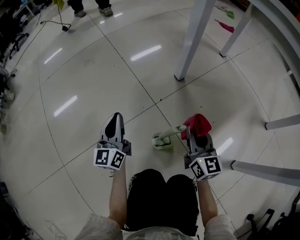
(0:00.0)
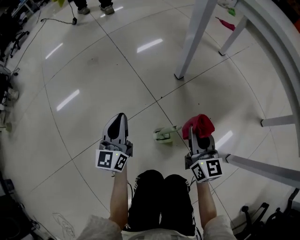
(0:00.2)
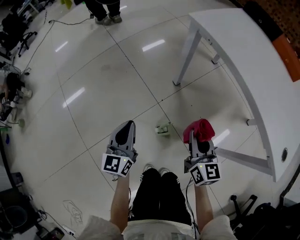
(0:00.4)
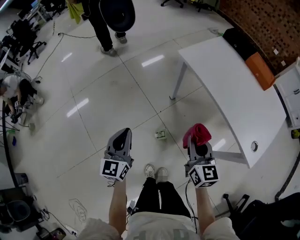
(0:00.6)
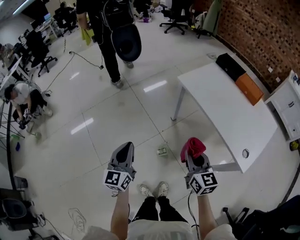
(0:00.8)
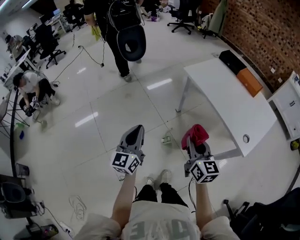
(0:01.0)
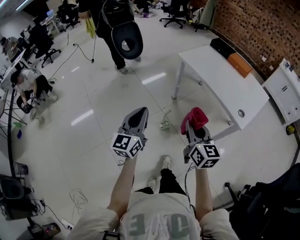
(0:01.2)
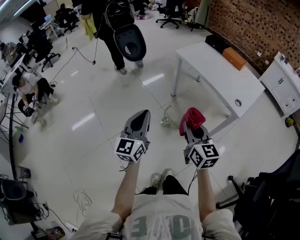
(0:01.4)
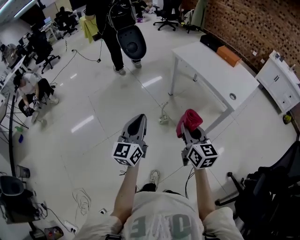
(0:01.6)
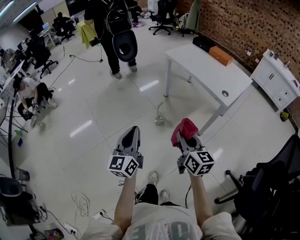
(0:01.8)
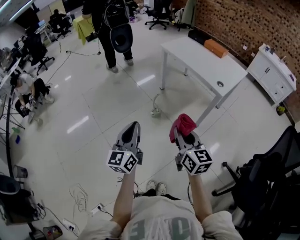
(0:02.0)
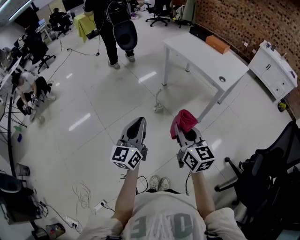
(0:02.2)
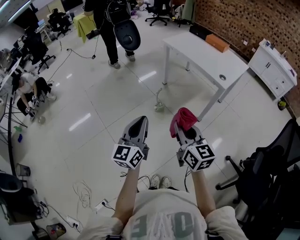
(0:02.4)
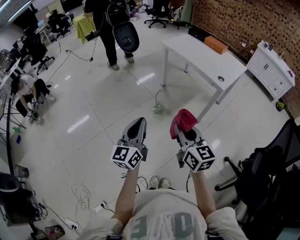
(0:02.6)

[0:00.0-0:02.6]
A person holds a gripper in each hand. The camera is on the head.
0:00.0 to 0:01.2: Both grippers travel together upward and backward, approximately 80 cm.
0:01.2 to 0:02.6: The two grippers go roughly 35 cm backward.

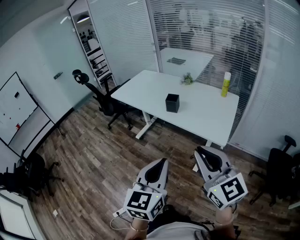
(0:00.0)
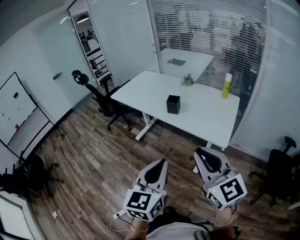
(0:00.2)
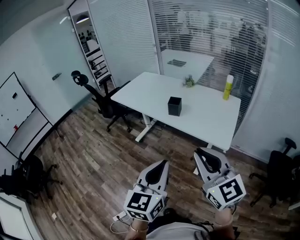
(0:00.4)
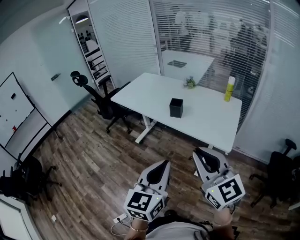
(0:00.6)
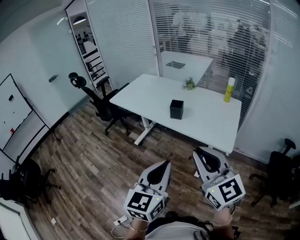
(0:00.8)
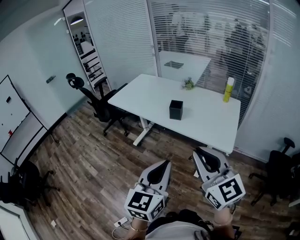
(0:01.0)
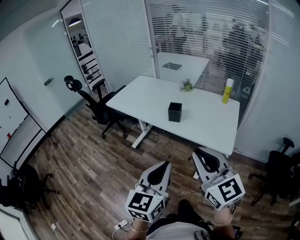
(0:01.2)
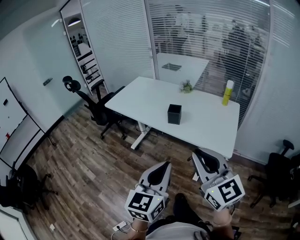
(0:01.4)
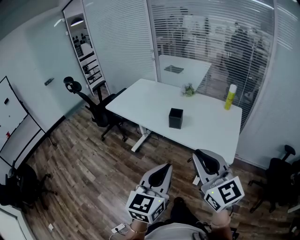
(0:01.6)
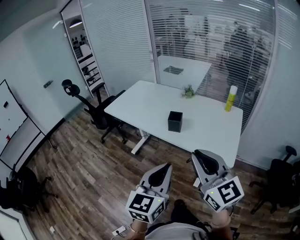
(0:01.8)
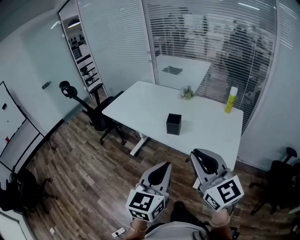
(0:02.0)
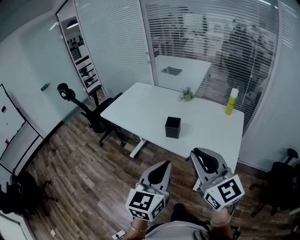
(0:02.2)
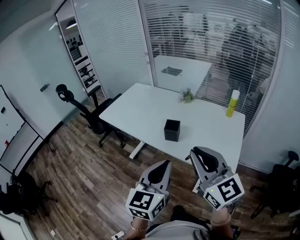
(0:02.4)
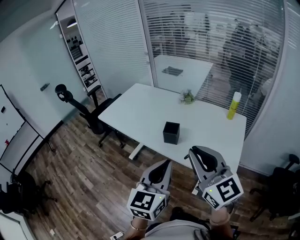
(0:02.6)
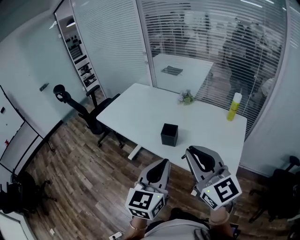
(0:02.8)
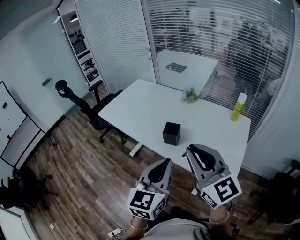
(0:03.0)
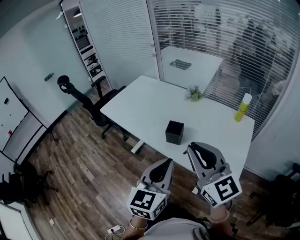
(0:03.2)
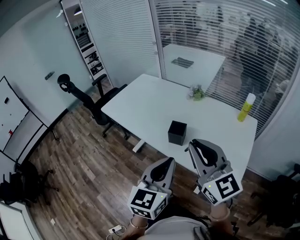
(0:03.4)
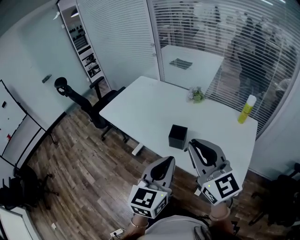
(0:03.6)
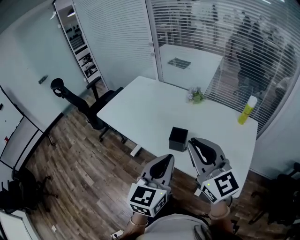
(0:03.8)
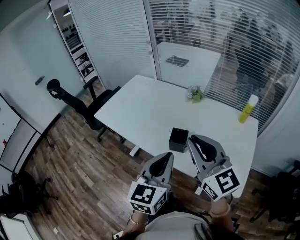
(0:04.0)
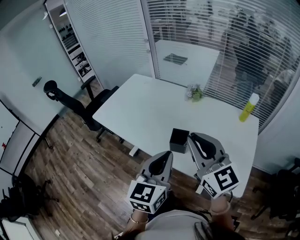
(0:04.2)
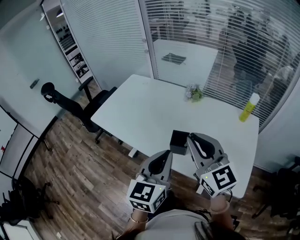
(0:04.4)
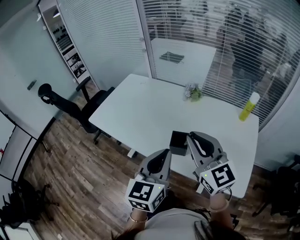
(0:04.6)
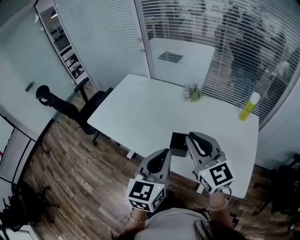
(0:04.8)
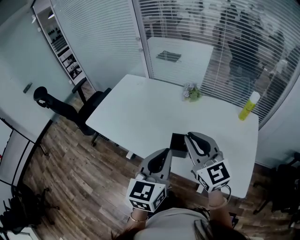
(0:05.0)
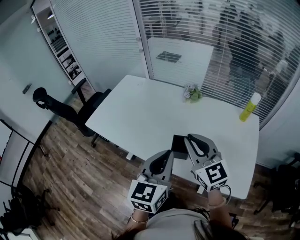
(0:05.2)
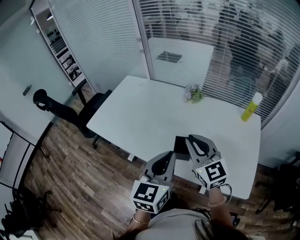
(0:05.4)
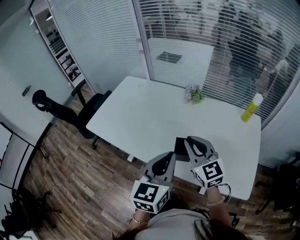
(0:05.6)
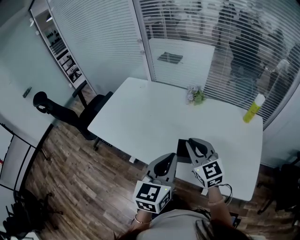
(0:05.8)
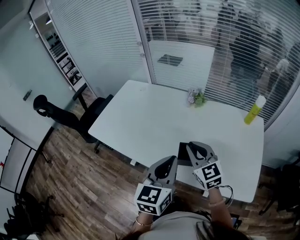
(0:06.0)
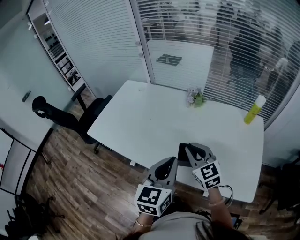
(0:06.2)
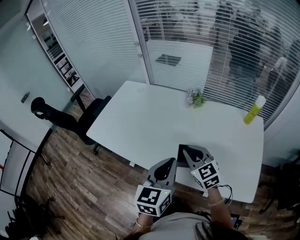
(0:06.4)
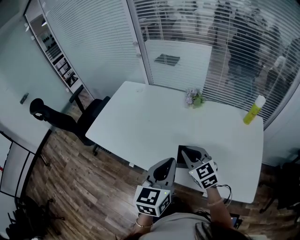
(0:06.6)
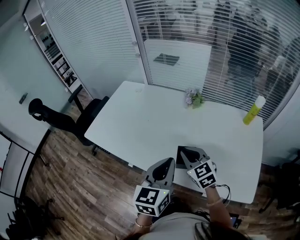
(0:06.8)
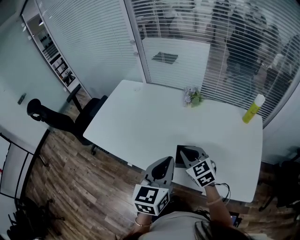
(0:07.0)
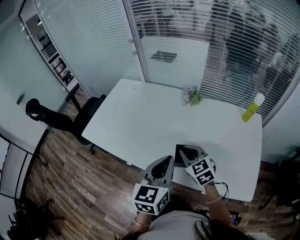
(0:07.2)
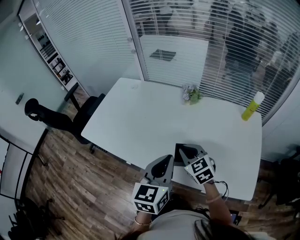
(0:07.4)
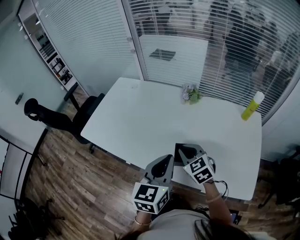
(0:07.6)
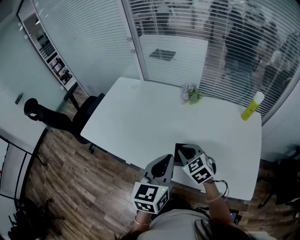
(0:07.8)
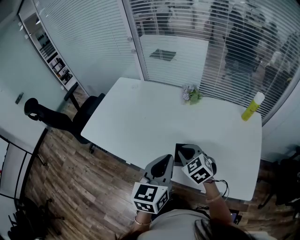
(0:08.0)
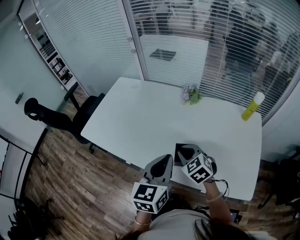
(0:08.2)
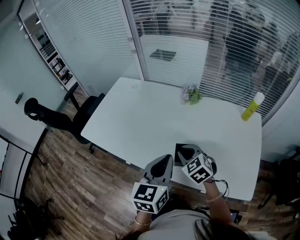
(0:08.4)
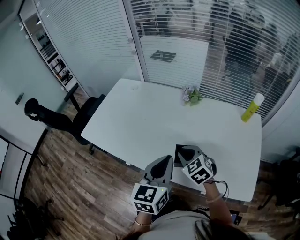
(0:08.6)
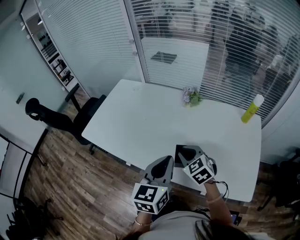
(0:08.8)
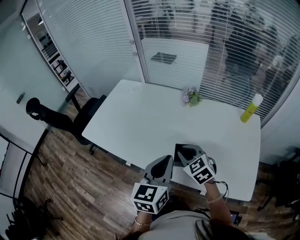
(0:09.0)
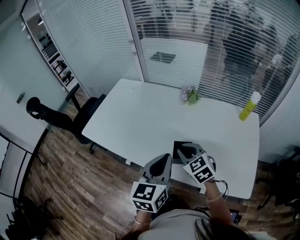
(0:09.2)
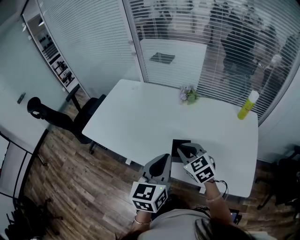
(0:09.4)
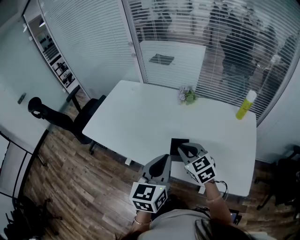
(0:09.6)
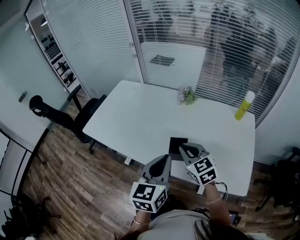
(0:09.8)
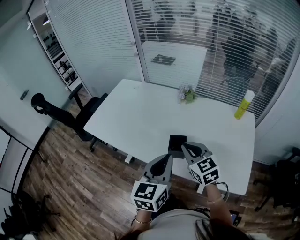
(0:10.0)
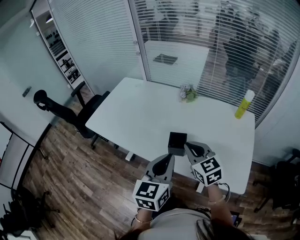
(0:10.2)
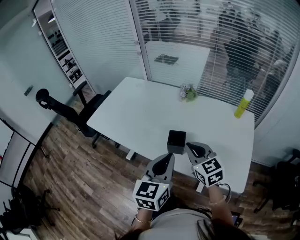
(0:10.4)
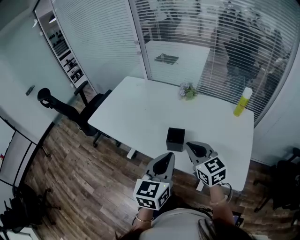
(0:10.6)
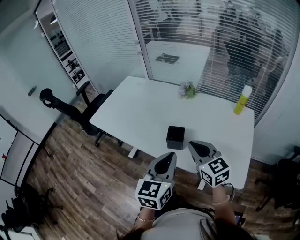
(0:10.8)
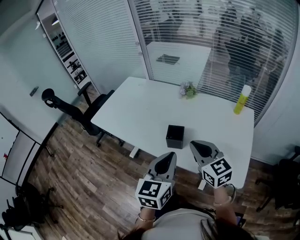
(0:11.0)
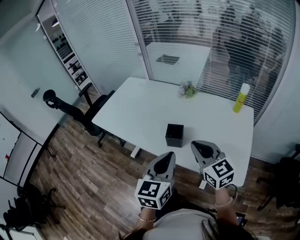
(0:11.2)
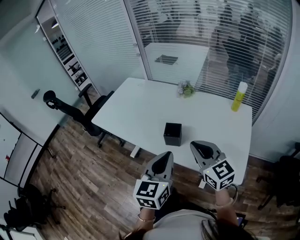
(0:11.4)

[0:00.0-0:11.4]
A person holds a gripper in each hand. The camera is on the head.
0:00.0 to 0:01.4: The left gripper is displaced forward by some 10 cm. The right gripper is displaced forward and to the left by roughly 10 cm.
0:01.4 to 0:02.8: The grippers both shift forward by some 20 cm.
0:02.8 to 0:04.2: Both grippers move forward, roughly 15 cm.
0:04.2 to 0:05.6: The right gripper heads downward and forward, covering roughly 15 cm. Meanwhile the left gripper travels forward by roughly 10 cm.
0:05.6 to 0:07.2: The left gripper shifts by roughly 5 cm; the right gripper moves downward, about 10 cm, and turns by approximately 20 degrees.
0:07.2 to 0:08.6: The grippers make only small movements.
0:08.6 to 0:10.0: The right gripper moves upward and backward, some 10 cm, and changes its angle by roughly 20 degrees. The left gripper travels backward by roughly 5 cm.
0:10.0 to 0:11.4: The right gripper moves backward and upward, about 15 cm; the left gripper is displaced backward by some 10 cm.

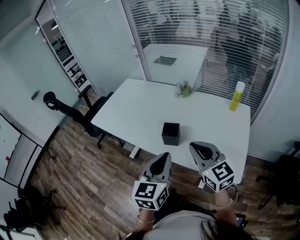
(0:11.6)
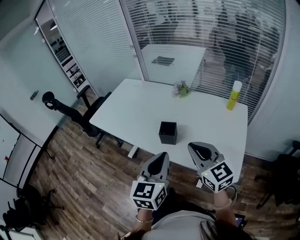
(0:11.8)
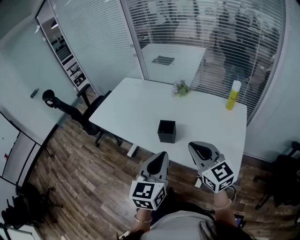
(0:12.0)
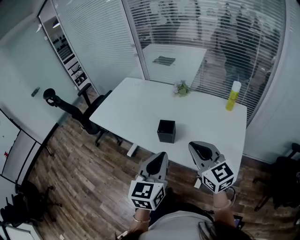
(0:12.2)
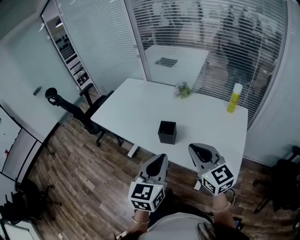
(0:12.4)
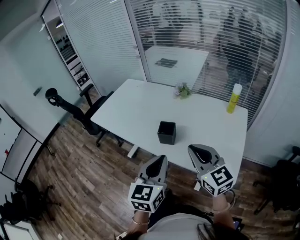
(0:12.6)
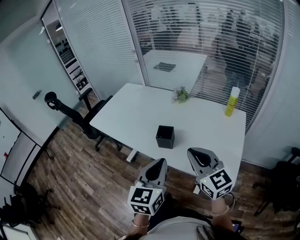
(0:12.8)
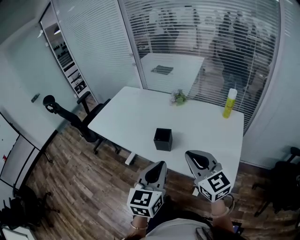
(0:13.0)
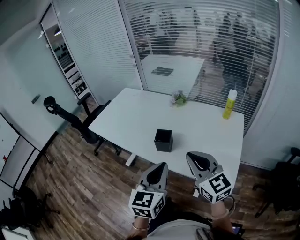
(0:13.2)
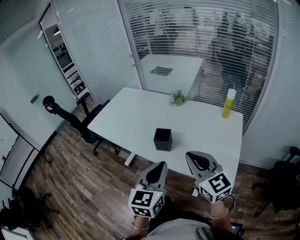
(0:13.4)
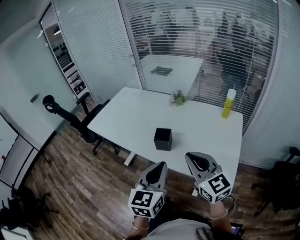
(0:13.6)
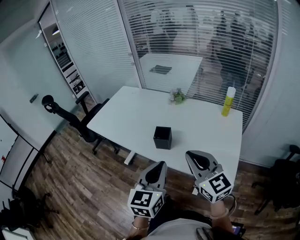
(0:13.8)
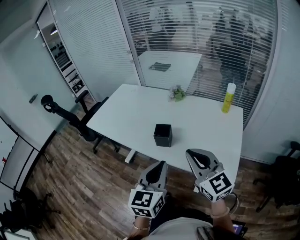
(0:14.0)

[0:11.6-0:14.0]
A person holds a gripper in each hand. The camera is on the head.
0:11.6 to 0:14.0: The grippers make only small movements.

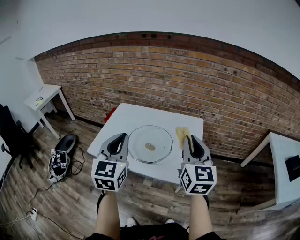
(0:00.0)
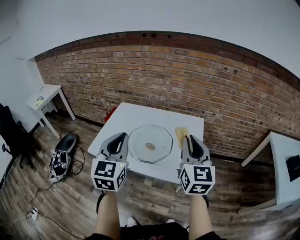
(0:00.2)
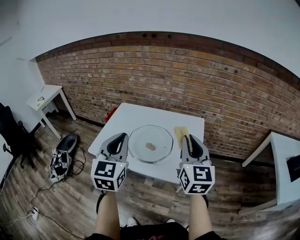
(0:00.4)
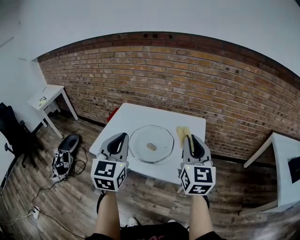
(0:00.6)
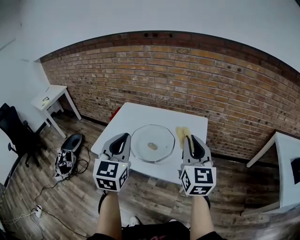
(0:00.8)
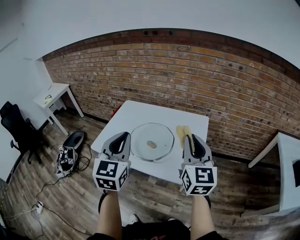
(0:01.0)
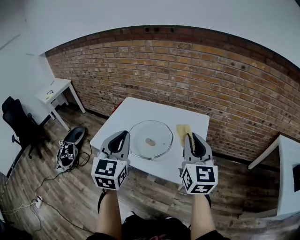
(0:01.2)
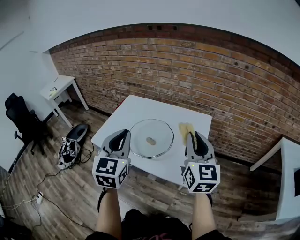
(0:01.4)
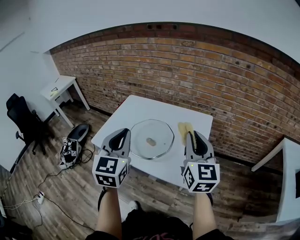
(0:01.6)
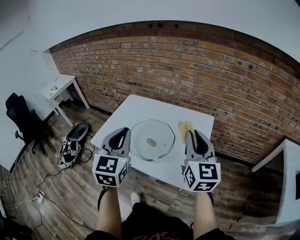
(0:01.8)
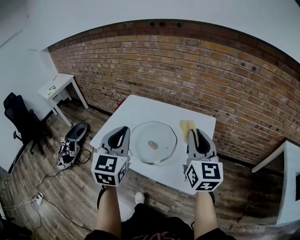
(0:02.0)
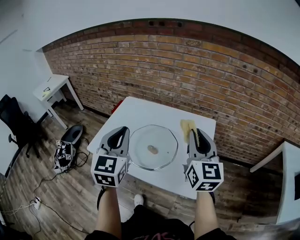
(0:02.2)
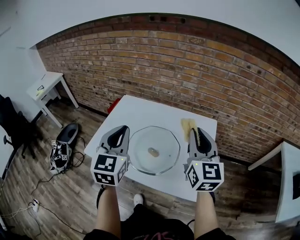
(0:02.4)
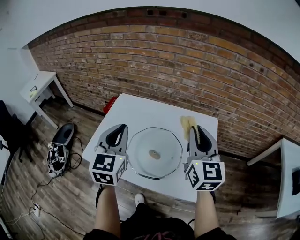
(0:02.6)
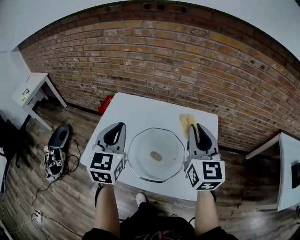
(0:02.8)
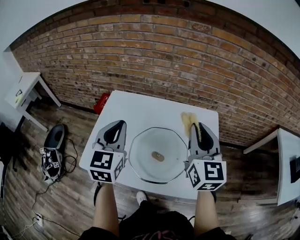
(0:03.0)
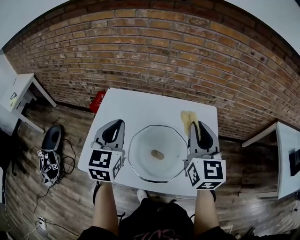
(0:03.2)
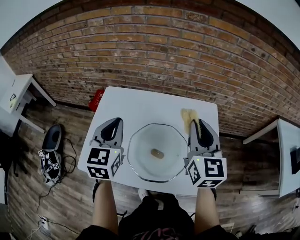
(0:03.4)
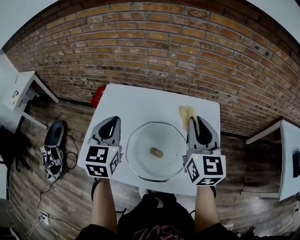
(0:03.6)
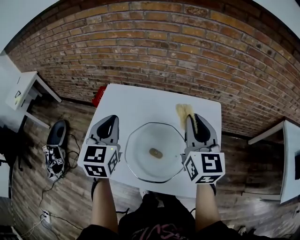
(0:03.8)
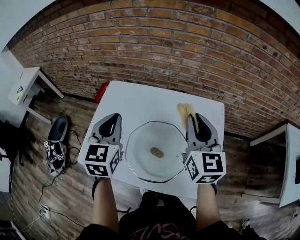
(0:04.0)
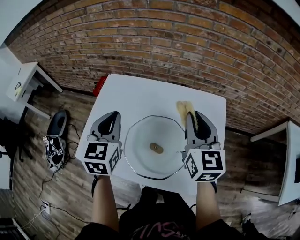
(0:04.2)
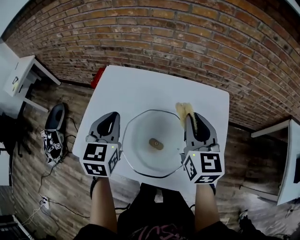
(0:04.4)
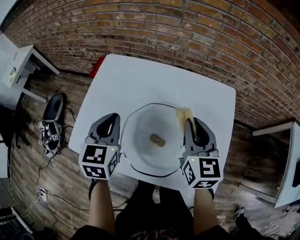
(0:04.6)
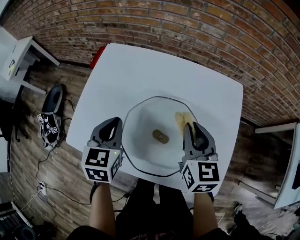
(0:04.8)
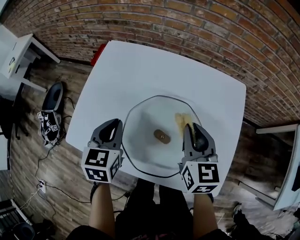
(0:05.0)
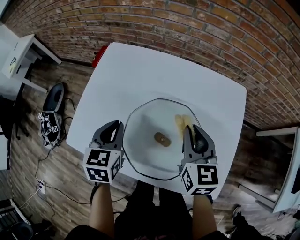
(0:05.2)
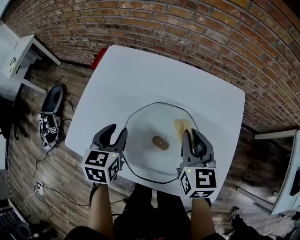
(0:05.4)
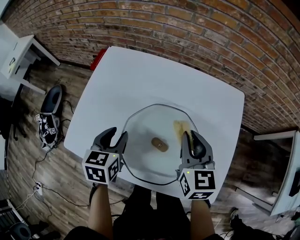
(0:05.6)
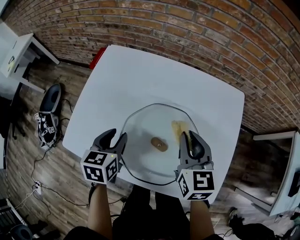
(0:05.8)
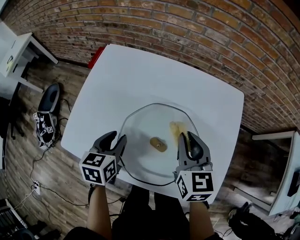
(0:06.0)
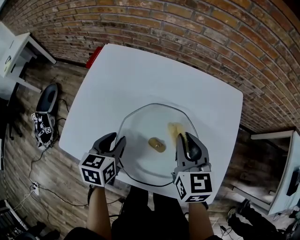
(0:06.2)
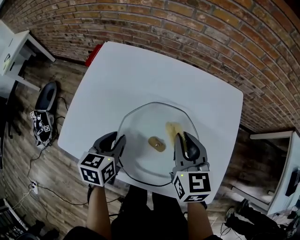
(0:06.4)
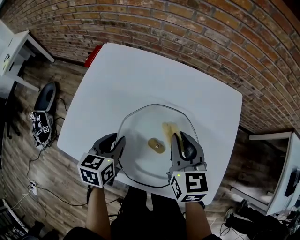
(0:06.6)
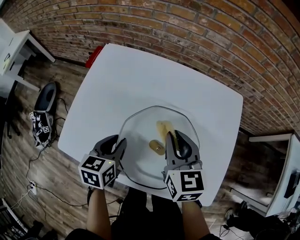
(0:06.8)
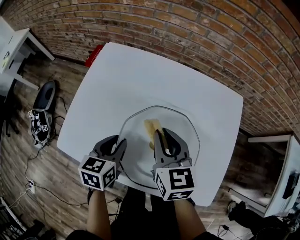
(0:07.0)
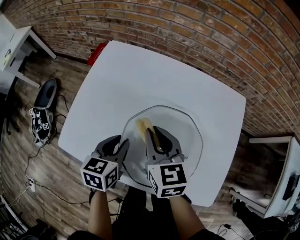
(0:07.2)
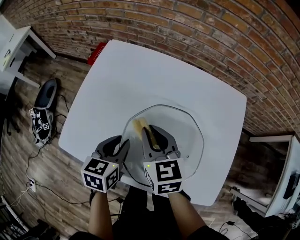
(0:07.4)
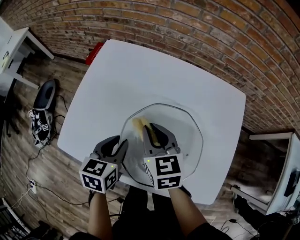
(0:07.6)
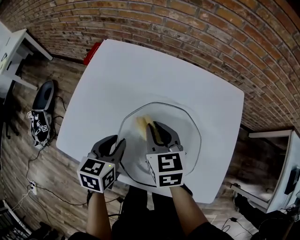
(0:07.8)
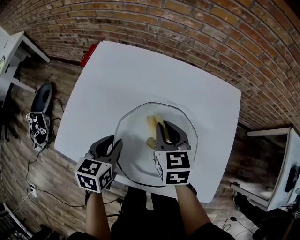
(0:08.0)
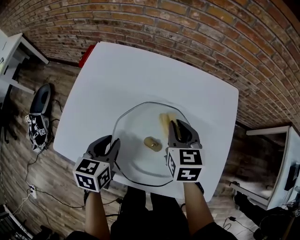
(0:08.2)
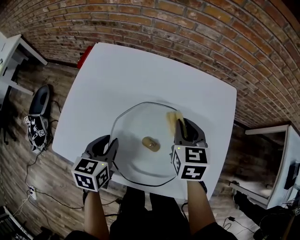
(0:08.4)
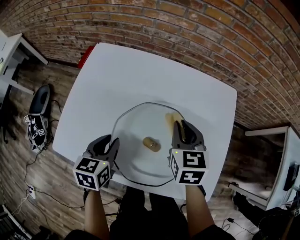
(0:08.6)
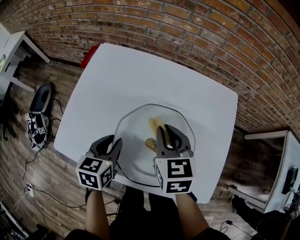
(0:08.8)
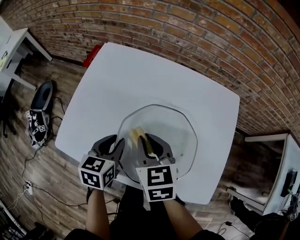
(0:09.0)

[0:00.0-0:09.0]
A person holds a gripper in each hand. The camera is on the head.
0:00.0 to 0:01.6: The two grippers go about 5 cm to the right.
0:01.6 to 0:03.0: The two grippers go about 25 cm forward and to the left.
0:03.0 to 0:04.4: The right gripper heads downward and forward, covering approximately 10 cm. Meanwhile the left gripper goes about 10 cm downward.
0:04.4 to 0:06.0: The two grippers go about 15 cm downward. The left gripper rotates roughly 30 degrees, and opens up.
0:06.0 to 0:07.6: The right gripper shifts roughly 15 cm to the left.
0:07.6 to 0:09.0: The right gripper travels to the right and back again, some 15 cm each way.
